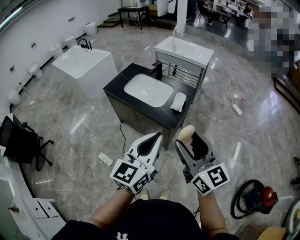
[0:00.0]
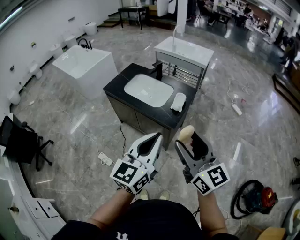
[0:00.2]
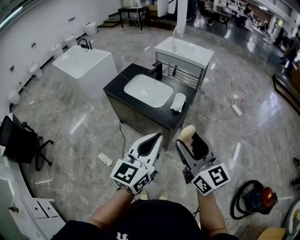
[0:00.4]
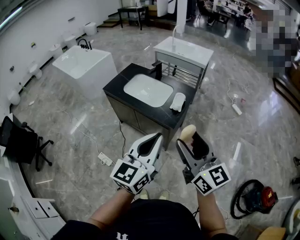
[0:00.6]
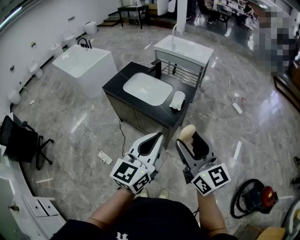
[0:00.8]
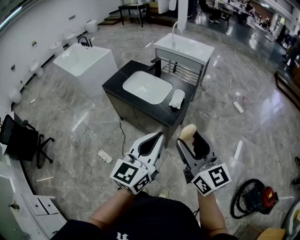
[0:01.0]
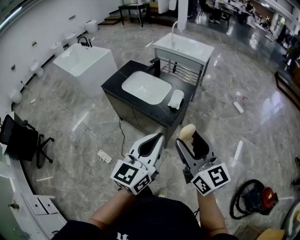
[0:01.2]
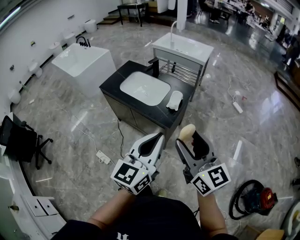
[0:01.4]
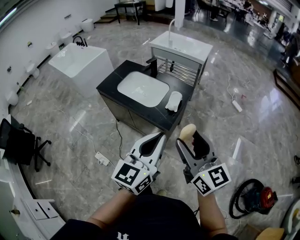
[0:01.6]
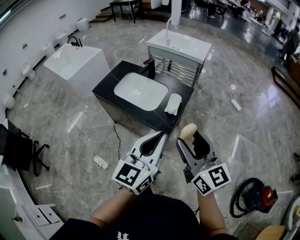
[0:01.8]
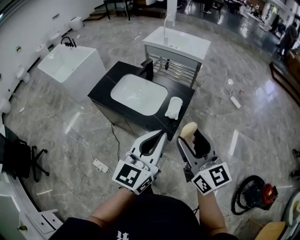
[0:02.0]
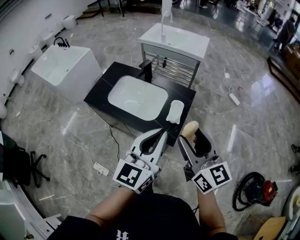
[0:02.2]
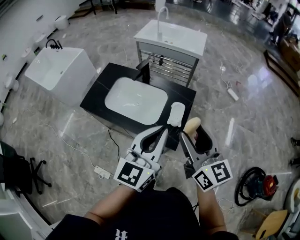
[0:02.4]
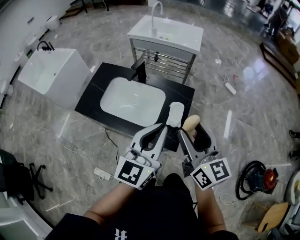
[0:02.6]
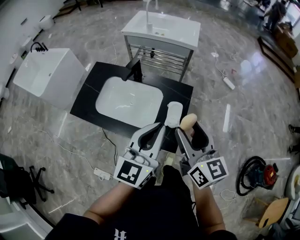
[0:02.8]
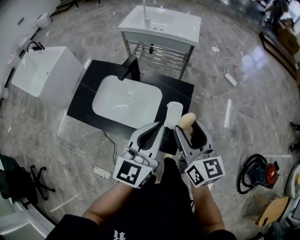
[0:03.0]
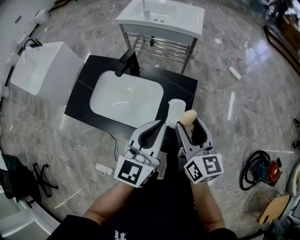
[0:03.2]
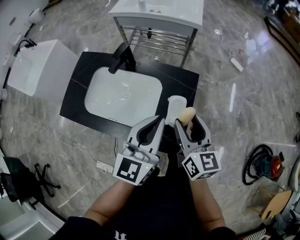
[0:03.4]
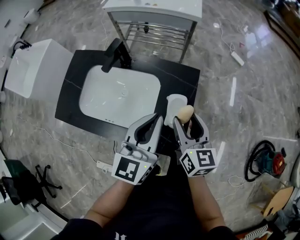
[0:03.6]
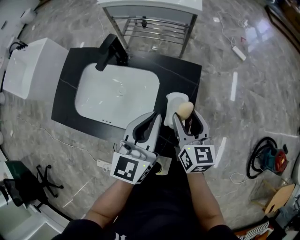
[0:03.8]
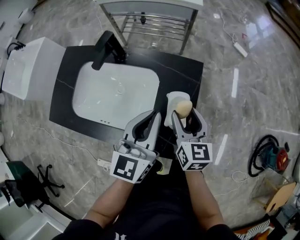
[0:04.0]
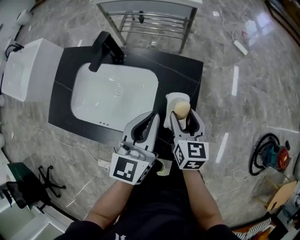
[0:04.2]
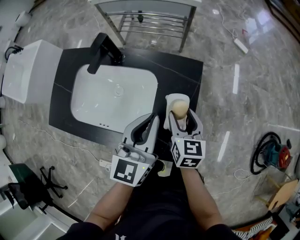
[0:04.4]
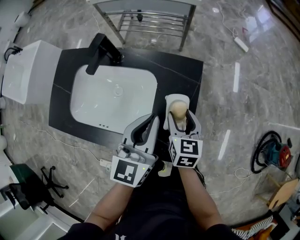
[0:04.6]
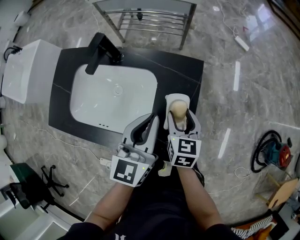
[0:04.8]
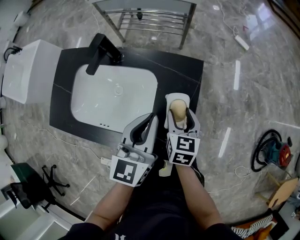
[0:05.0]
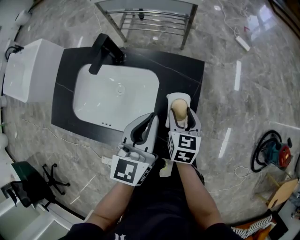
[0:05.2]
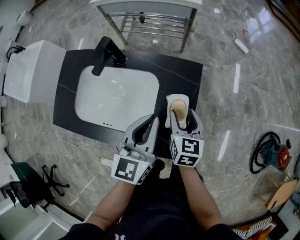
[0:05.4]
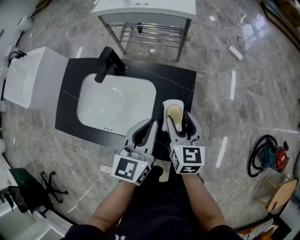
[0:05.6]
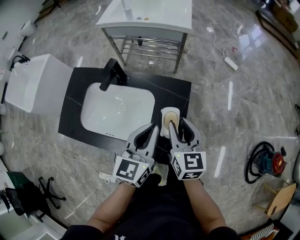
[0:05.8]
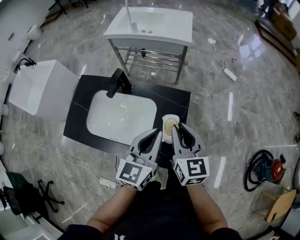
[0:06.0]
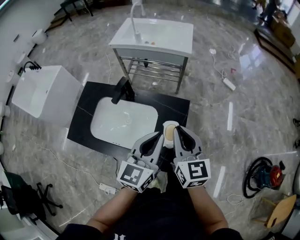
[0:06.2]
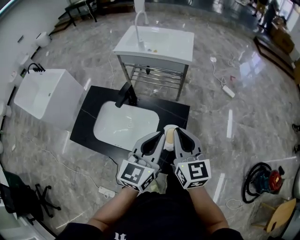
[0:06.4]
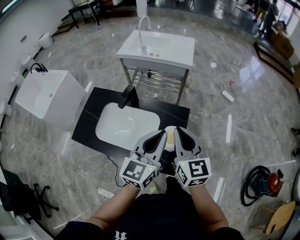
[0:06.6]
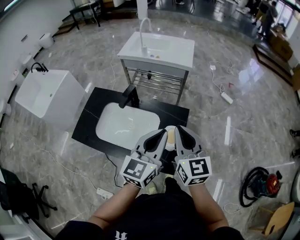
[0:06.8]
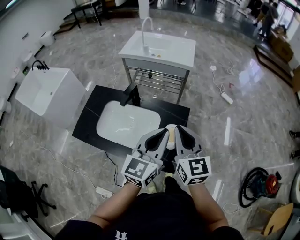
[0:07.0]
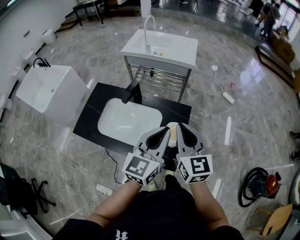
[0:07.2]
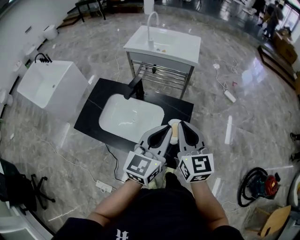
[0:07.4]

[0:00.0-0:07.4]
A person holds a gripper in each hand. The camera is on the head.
0:00.0 to 0:01.4: The left gripper changes place by some 5 cm. Meanwhile the right gripper ends up some 5 cm from where it was.
0:01.4 to 0:03.0: Both grippers travel together forward, about 35 cm. The right gripper rotates about 30 degrees.
0:03.0 to 0:04.4: The right gripper heads downward, covering roughly 30 cm, and changes its angle by some 30 degrees. Meanwhile the left gripper moves downward and forward, some 20 cm.
0:04.4 to 0:06.0: The left gripper shifts roughly 10 cm upward; the right gripper goes roughly 20 cm upward, and closes up.
0:06.0 to 0:07.4: Both grippers move upward and backward, approximately 10 cm.

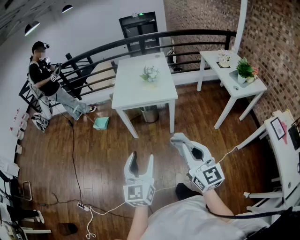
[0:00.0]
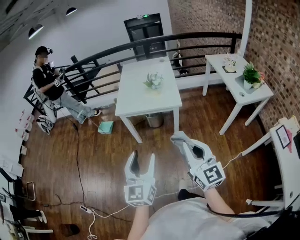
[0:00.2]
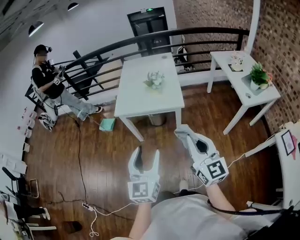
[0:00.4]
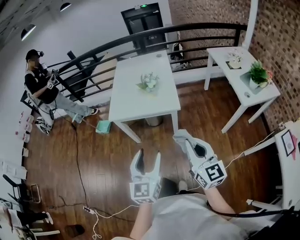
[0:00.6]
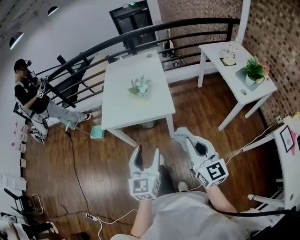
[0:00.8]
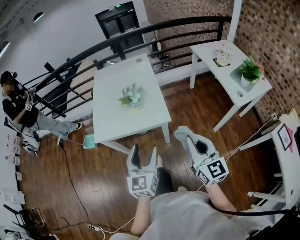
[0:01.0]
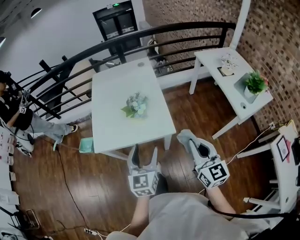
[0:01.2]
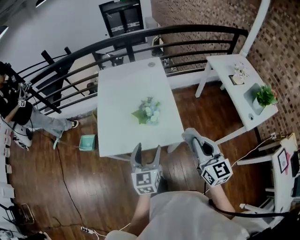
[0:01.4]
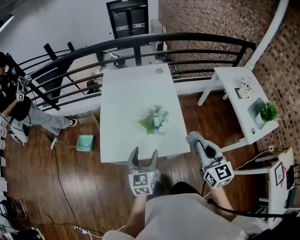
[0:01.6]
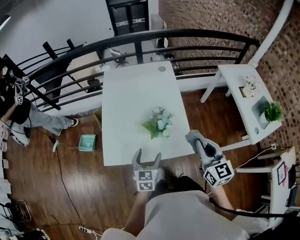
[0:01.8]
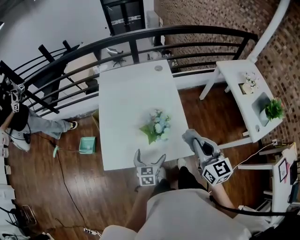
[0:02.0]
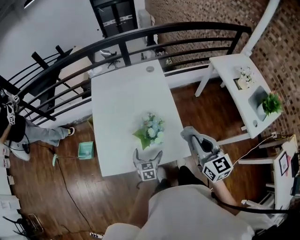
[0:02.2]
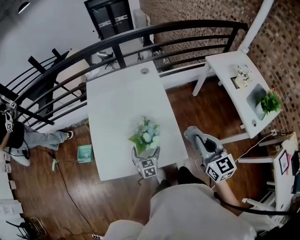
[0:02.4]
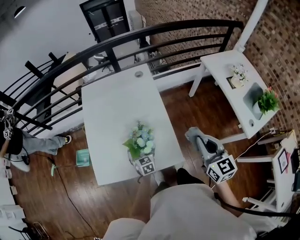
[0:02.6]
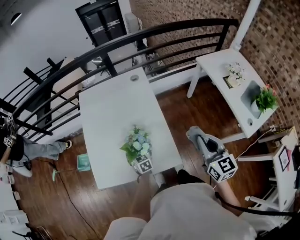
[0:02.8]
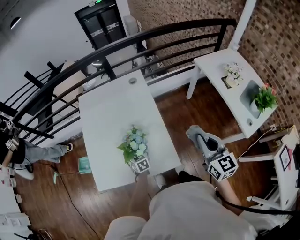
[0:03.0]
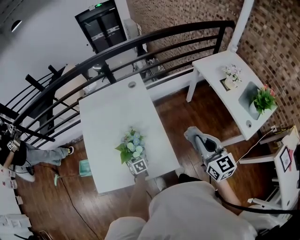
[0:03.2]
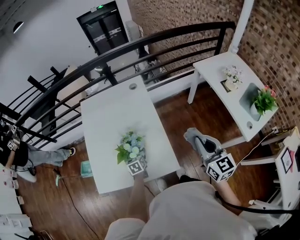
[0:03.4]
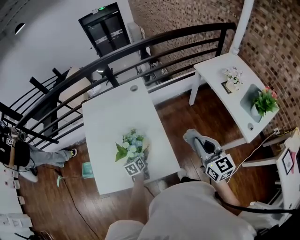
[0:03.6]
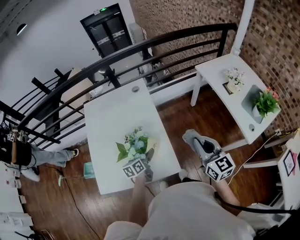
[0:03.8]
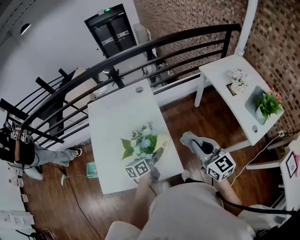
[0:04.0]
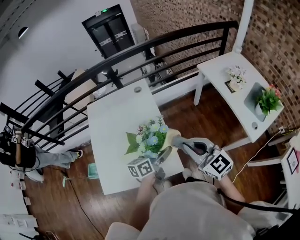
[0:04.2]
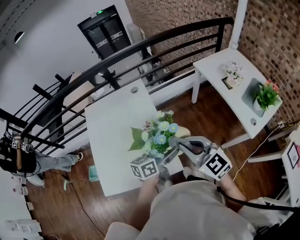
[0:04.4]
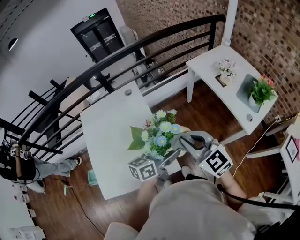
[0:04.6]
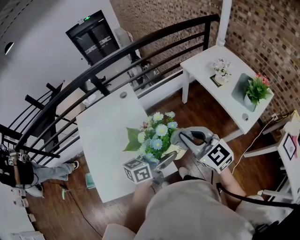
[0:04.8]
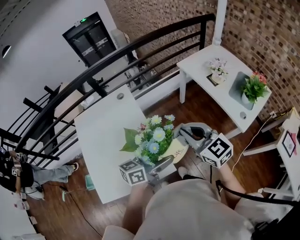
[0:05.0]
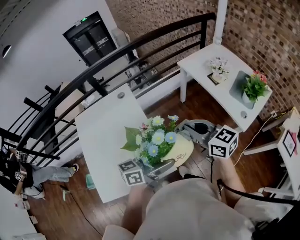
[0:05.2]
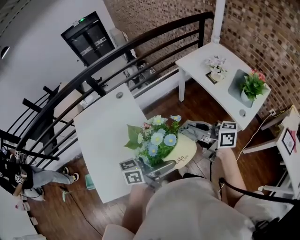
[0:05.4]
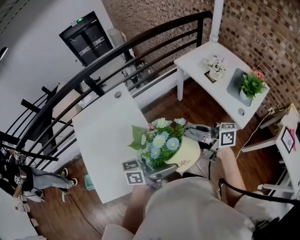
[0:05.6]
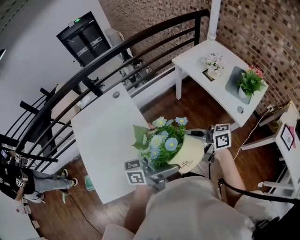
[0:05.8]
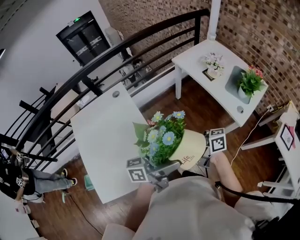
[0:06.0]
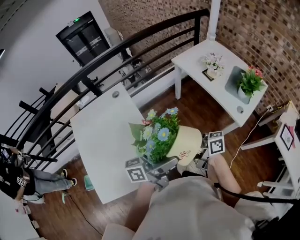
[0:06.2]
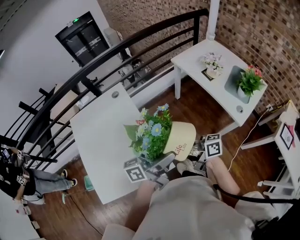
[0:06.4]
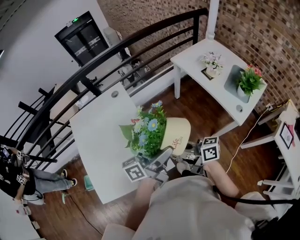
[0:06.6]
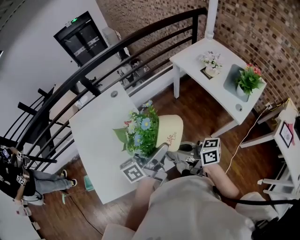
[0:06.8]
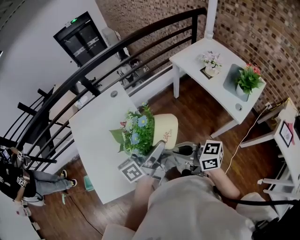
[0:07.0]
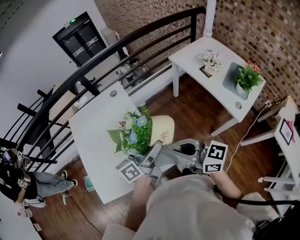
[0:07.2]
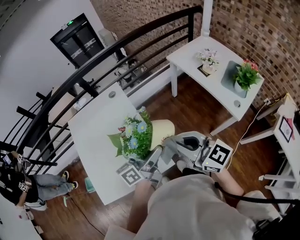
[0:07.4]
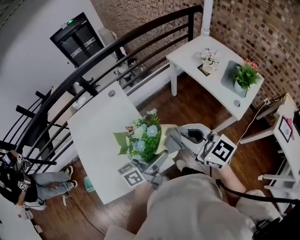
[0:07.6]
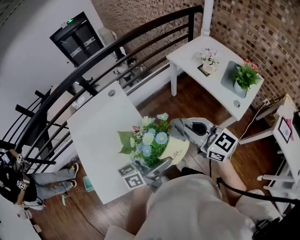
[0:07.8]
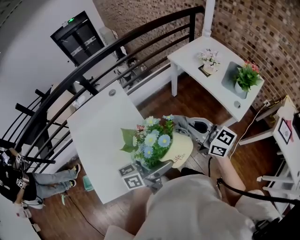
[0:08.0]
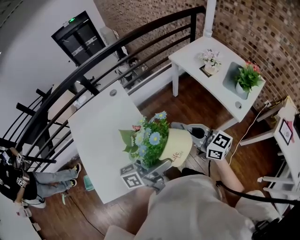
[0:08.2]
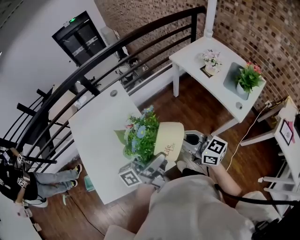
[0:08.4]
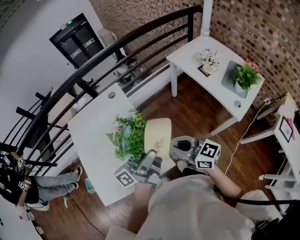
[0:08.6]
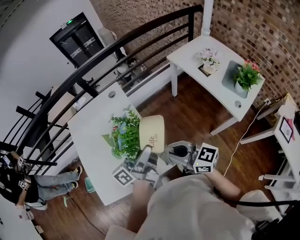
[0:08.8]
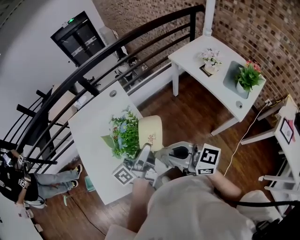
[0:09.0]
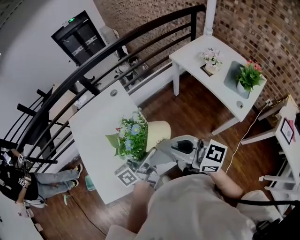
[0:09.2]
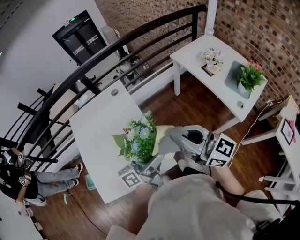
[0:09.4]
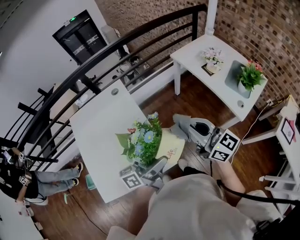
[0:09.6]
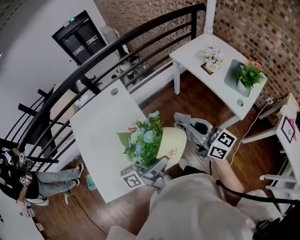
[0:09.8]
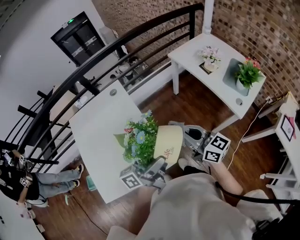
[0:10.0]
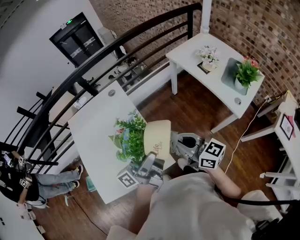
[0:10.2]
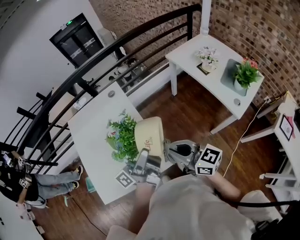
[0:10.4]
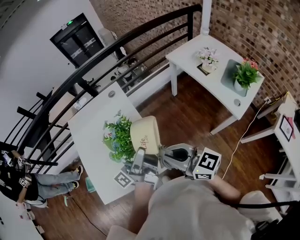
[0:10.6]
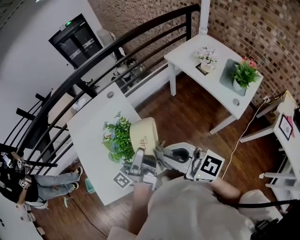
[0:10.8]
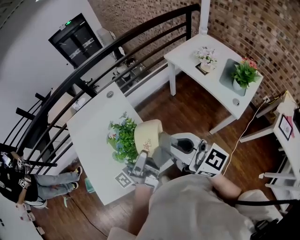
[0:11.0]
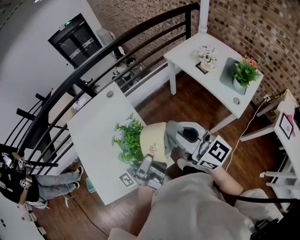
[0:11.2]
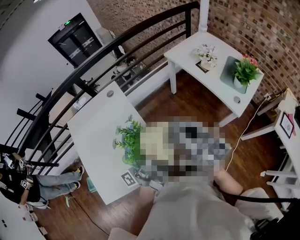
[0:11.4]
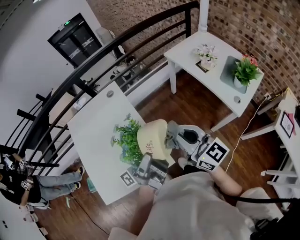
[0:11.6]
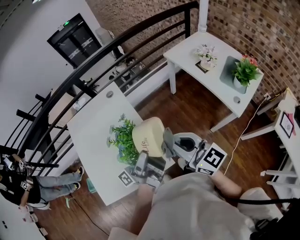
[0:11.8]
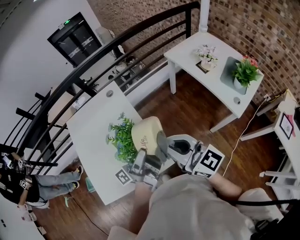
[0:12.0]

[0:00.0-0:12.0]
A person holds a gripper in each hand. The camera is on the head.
0:00.0 to 0:01.6: Both grippers are carried forward, about 60 cm.
0:01.6 to 0:03.0: The right gripper moves to the right and forward, roughly 20 cm; the left gripper moves downward and forward, roughly 30 cm, and swivels some 30 degrees.
0:03.0 to 0:04.4: The left gripper shifts some 35 cm upward and to the right, and angles its fingers upward, by about 30 degrees. Meanwhile the right gripper heads to the left, covering roughly 5 cm, and turns by some 30 degrees.
0:04.4 to 0:06.0: The right gripper ends up approximately 10 cm from where it was, and twists some 60 degrees clockwise, seen from behind, while the left gripper travels upward by some 10 cm, and points its fingers roughly 30 degrees further upward.
0:06.0 to 0:07.6: The left gripper is displaced downward by roughly 5 cm, and swivels approximately 30 degrees, while the right gripper goes about 10 cm upward, and rolls counterclockwise, seen from behind, by some 50 degrees.
0:07.6 to 0:09.0: Both grippers move to the left, some 5 cm. The left gripper rotates approximately 20 degrees; the right gripper changes its angle by about 30 degrees.
0:09.0 to 0:10.4: The right gripper goes to the right and returns, approximately 10 cm each way.
0:10.4 to 0:12.0: The right gripper is displaced upward by some 5 cm.

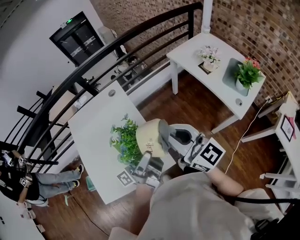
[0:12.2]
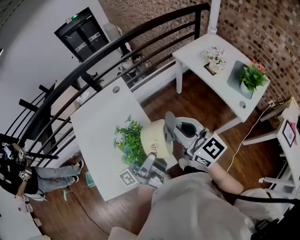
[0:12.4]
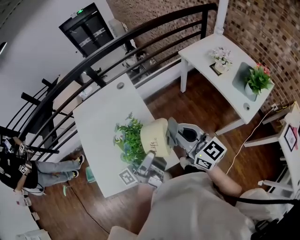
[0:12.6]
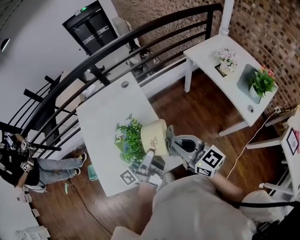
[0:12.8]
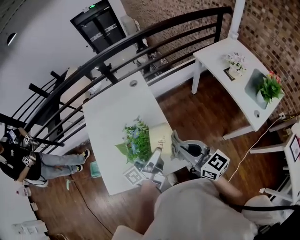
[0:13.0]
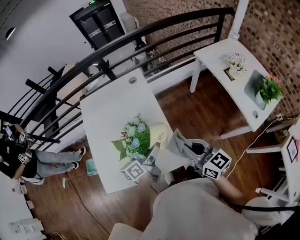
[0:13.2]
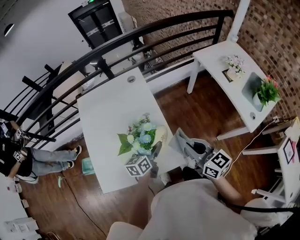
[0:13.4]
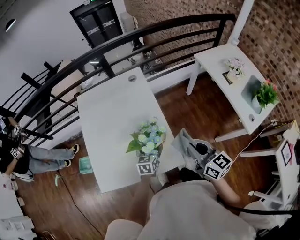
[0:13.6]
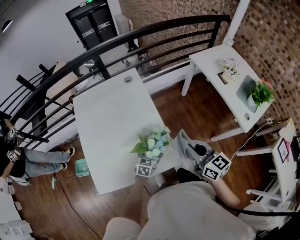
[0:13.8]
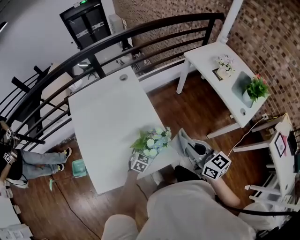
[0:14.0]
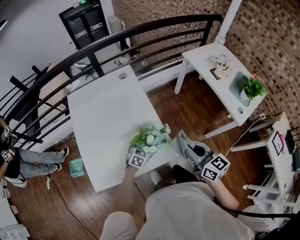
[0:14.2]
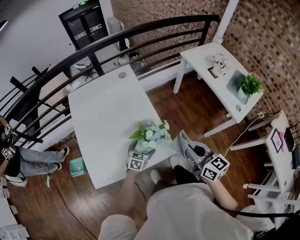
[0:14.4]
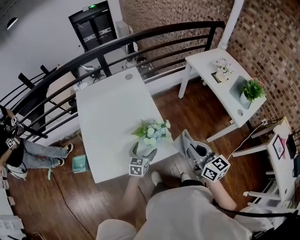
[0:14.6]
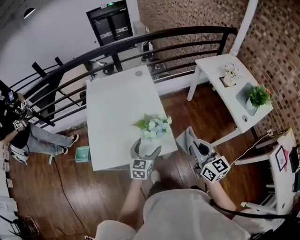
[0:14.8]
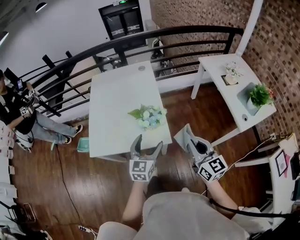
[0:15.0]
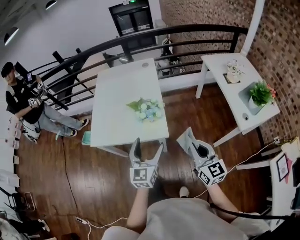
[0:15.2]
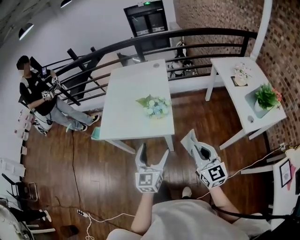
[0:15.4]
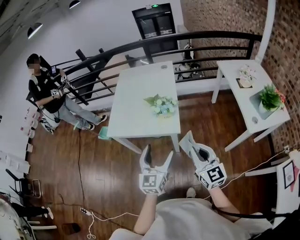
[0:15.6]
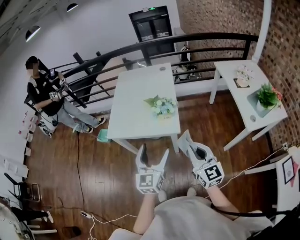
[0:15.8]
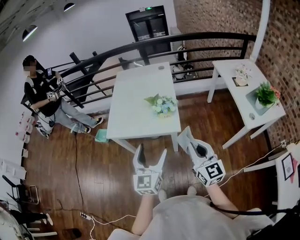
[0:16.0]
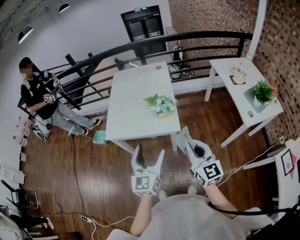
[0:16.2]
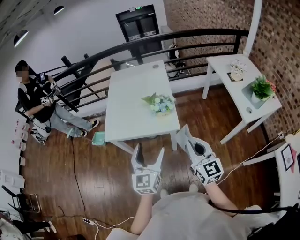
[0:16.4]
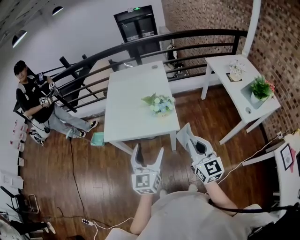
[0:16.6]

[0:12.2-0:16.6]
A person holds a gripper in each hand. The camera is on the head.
0:12.2 to 0:13.6: The right gripper heads downward, covering approximately 15 cm, and swivels roughly 20 degrees. Meanwhile the left gripper moves downward, approximately 30 cm, and tilts its fingers some 60 degrees downward.
0:13.6 to 0:15.2: The left gripper moves roughly 35 cm, and swivels about 40 degrees. The right gripper changes place by about 25 cm.
0:15.2 to 0:16.6: The right gripper shifts approximately 10 cm to the left and backward. The left gripper shifts approximately 15 cm backward, to the left and upward.
